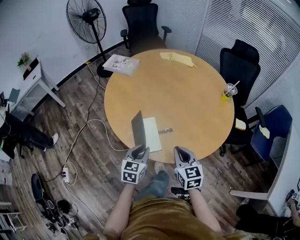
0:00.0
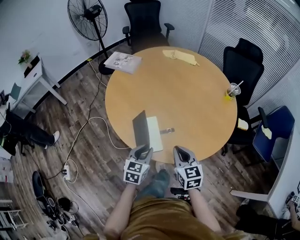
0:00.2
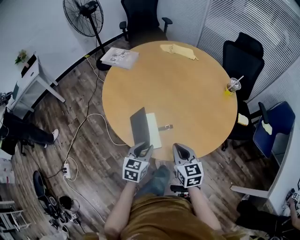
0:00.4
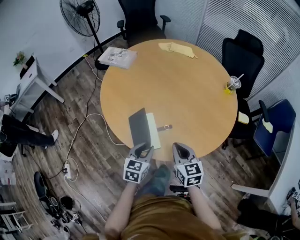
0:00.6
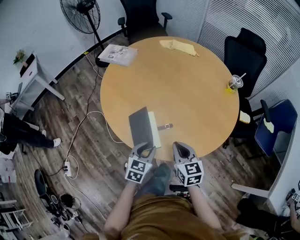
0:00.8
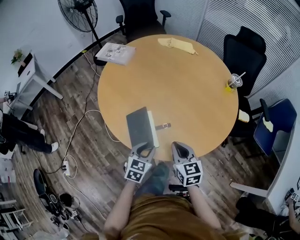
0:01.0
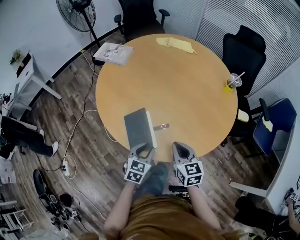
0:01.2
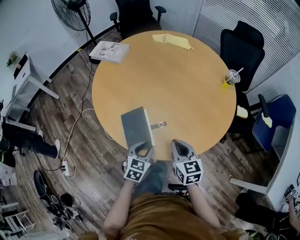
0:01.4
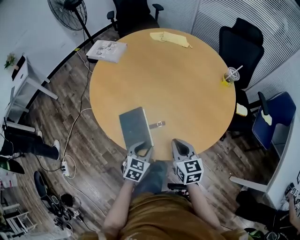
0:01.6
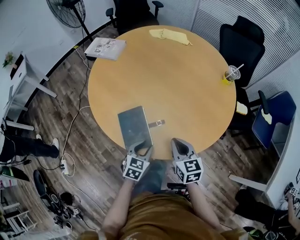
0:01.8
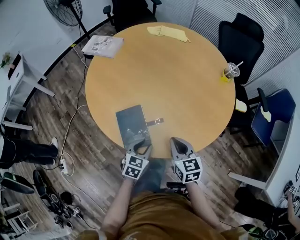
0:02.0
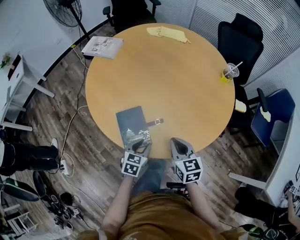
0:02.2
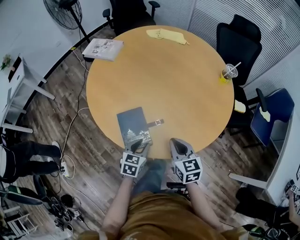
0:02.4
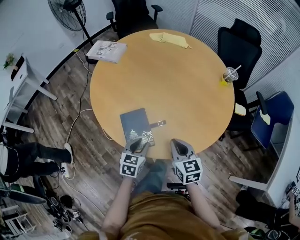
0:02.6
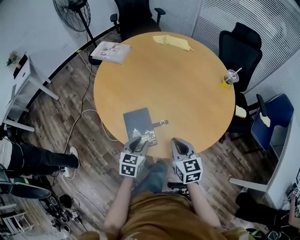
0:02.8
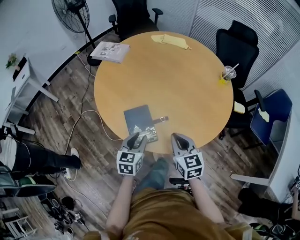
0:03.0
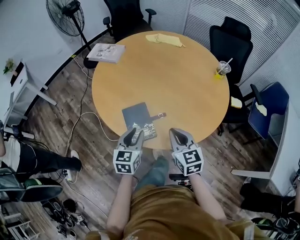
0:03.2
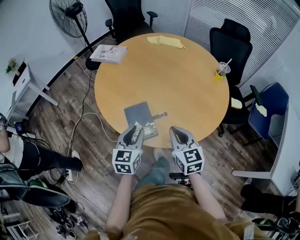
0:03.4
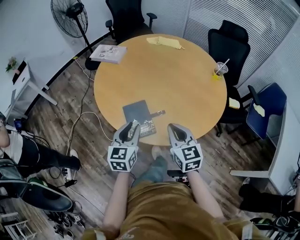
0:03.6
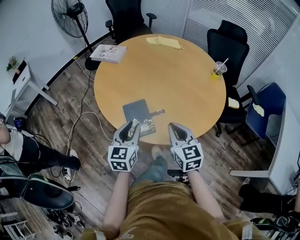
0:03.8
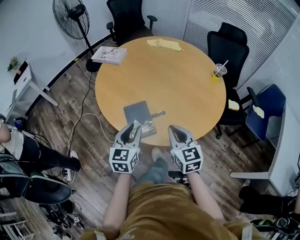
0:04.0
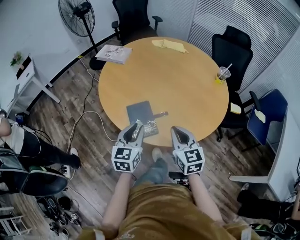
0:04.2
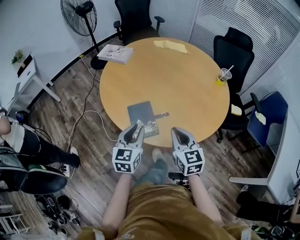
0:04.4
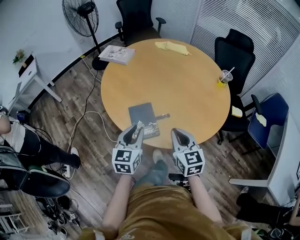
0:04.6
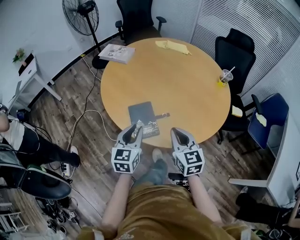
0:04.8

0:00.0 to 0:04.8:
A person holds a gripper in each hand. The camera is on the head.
0:00.0 to 0:01.6: The left gripper goes some 10 cm downward and to the right. The right gripper shifts by roughly 5 cm.
0:01.6 to 0:03.2: The right gripper is displaced upward by some 5 cm. Meanwhile the left gripper goes roughly 10 cm upward and to the left, and rotates approximately 20 degrees.
0:03.2 to 0:04.8: The left gripper moves upward, approximately 5 cm.

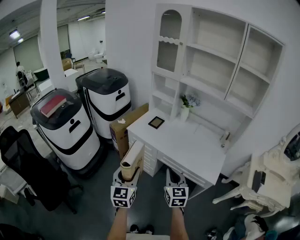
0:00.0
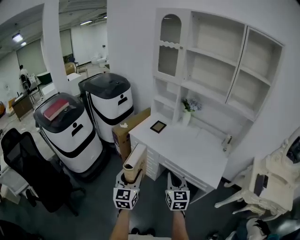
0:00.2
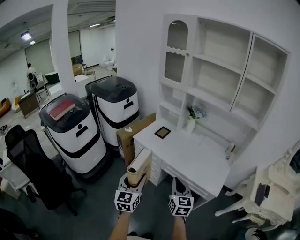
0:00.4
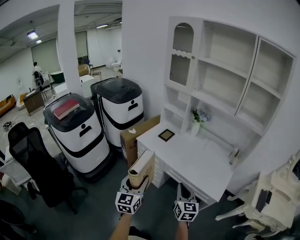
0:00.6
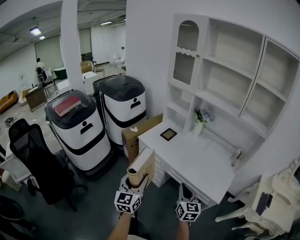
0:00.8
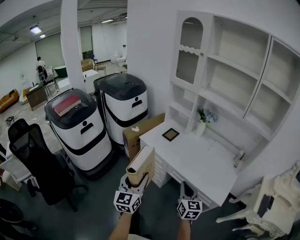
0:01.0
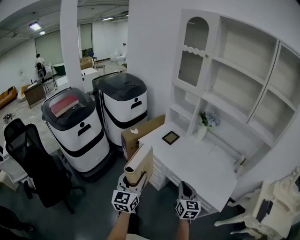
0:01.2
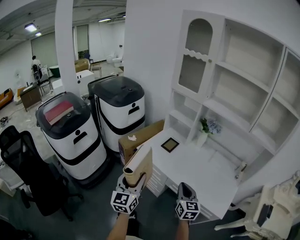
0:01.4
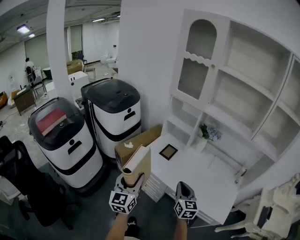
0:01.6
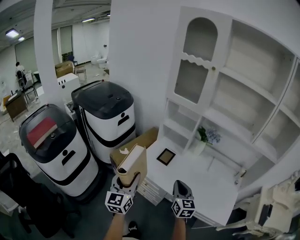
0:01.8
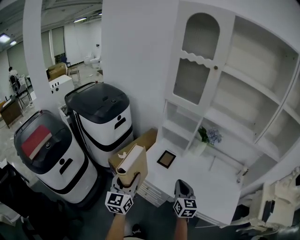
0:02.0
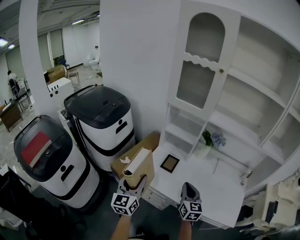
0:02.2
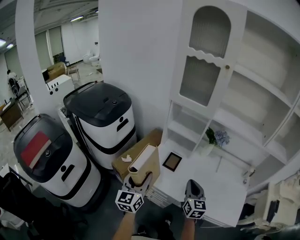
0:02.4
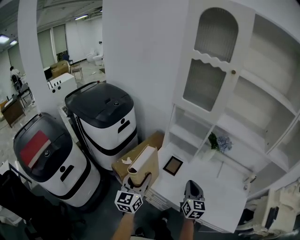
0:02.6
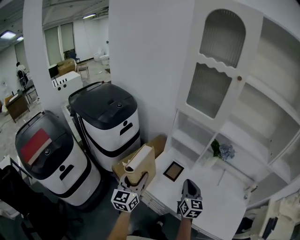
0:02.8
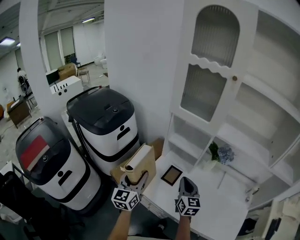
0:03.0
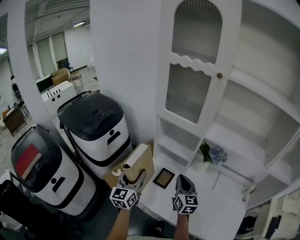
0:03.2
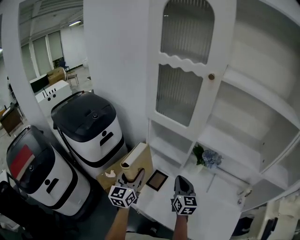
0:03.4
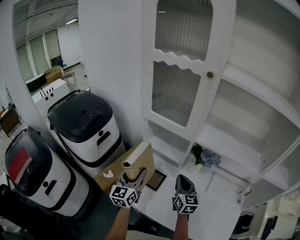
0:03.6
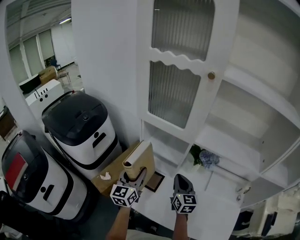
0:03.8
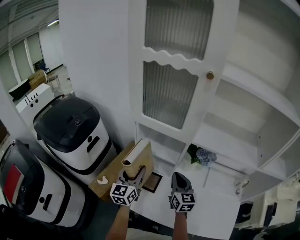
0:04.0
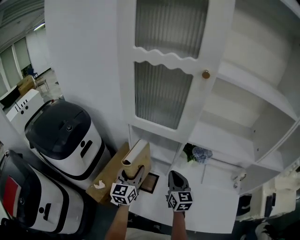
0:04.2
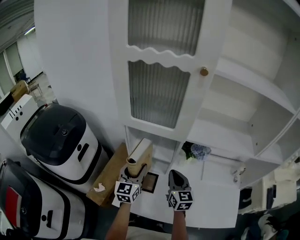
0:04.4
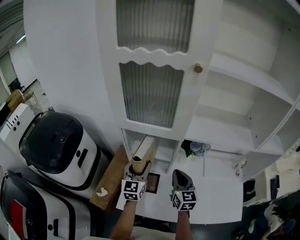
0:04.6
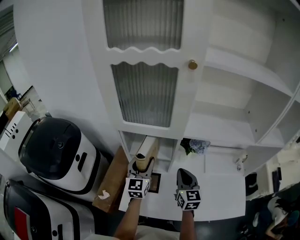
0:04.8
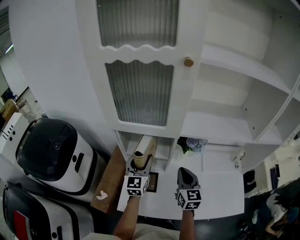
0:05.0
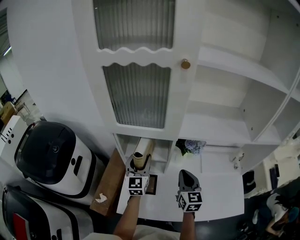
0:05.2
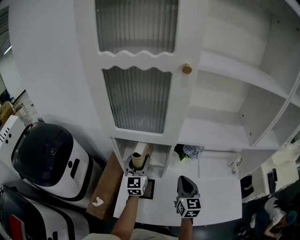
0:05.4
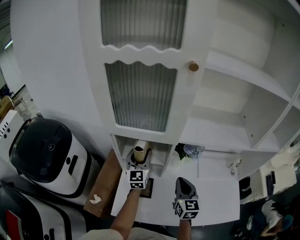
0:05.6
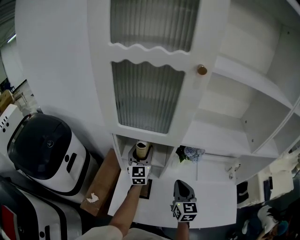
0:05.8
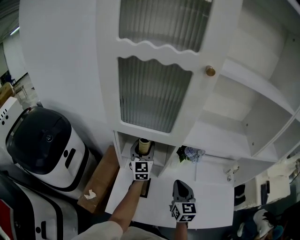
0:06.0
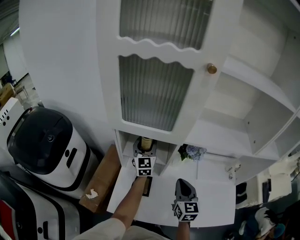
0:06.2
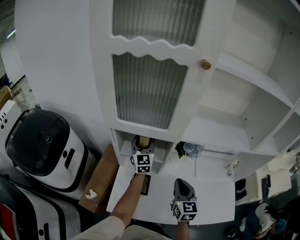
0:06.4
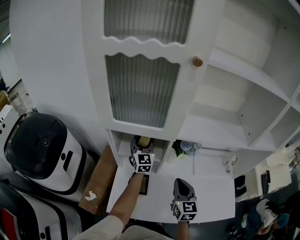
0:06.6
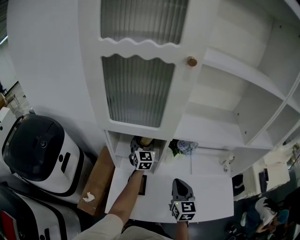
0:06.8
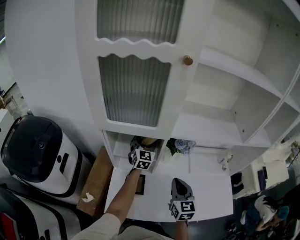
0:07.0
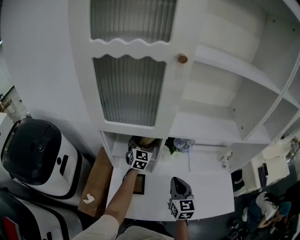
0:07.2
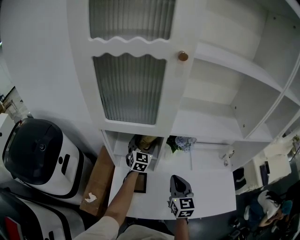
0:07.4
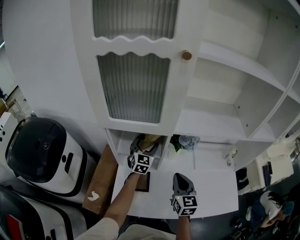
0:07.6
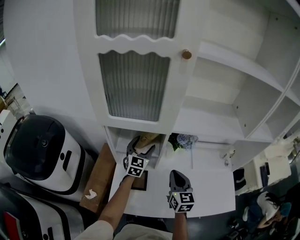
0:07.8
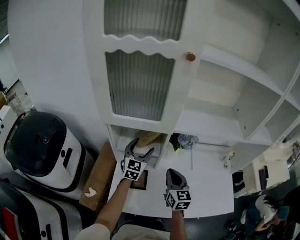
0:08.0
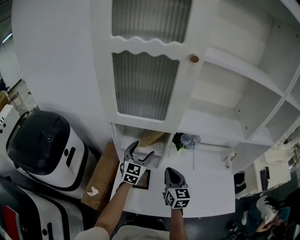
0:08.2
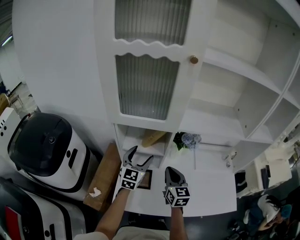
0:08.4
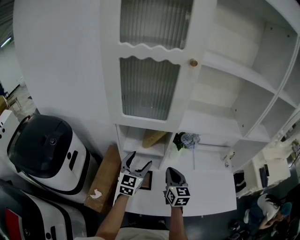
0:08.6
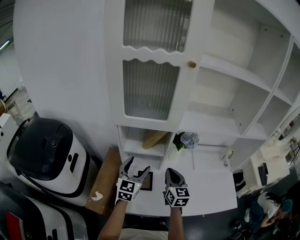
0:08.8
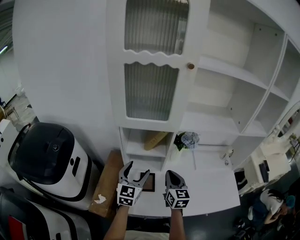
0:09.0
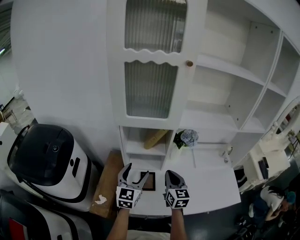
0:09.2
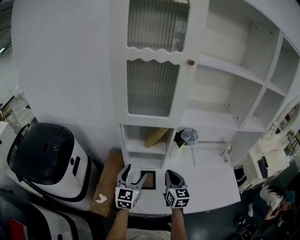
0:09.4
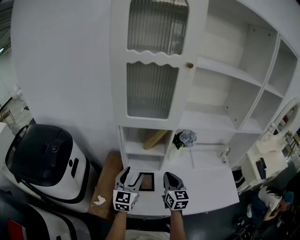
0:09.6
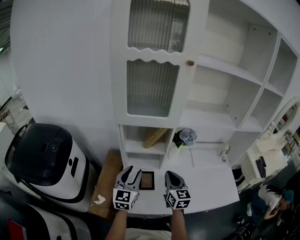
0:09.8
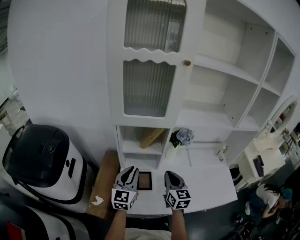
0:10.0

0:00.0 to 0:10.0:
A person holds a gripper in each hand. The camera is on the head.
0:00.0 to 0:01.4: The grippers both shift forward by some 15 cm.
0:01.4 to 0:02.8: Both grippers move forward, some 30 cm.
0:02.8 to 0:04.2: The right gripper is displaced forward and to the right by some 15 cm; the left gripper is displaced forward and to the right by approximately 25 cm.
0:04.2 to 0:05.8: The right gripper shifts roughly 5 cm to the right. Meanwhile the left gripper goes roughly 20 cm forward and to the right.
0:05.8 to 0:07.2: The left gripper goes roughly 10 cm to the right, and rotates some 20 degrees.
0:07.2 to 0:08.6: The left gripper travels backward by about 20 cm; the right gripper goes approximately 5 cm to the left.
0:08.6 to 0:10.0: The left gripper shifts approximately 10 cm backward, and closes, while the right gripper goes about 5 cm backward.

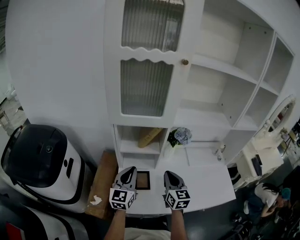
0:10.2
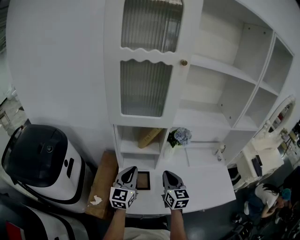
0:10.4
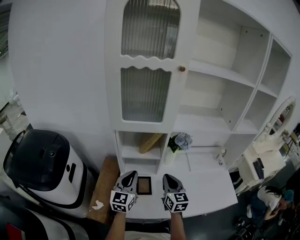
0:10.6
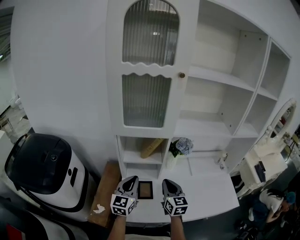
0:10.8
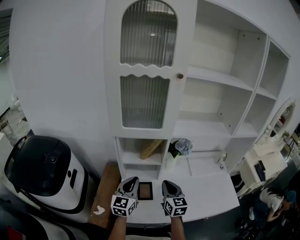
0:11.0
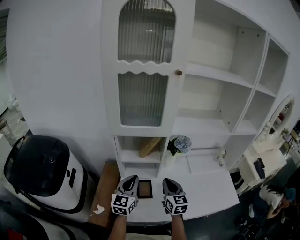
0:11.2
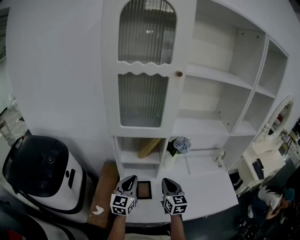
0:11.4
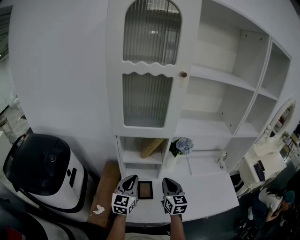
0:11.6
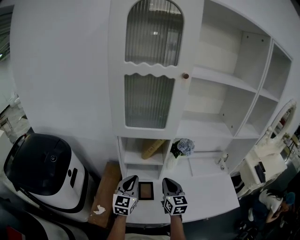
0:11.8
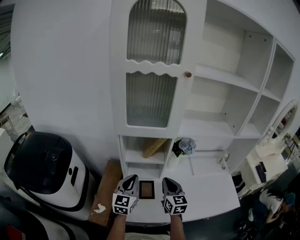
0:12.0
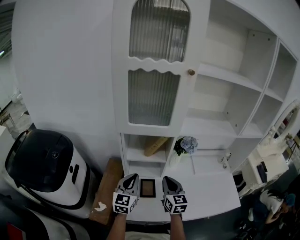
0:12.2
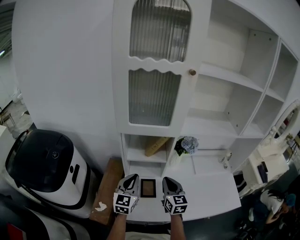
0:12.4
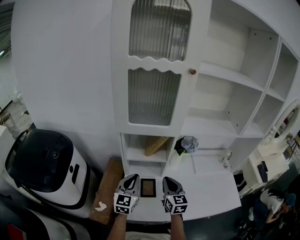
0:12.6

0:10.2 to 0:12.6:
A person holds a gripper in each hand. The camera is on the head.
0:10.2 to 0:12.6: The grippers stay close to where they were, moving slightly.

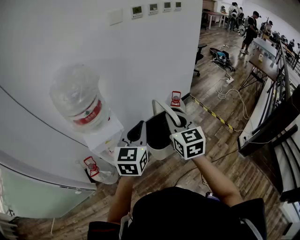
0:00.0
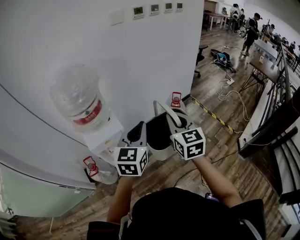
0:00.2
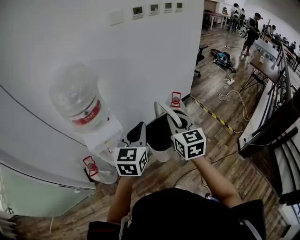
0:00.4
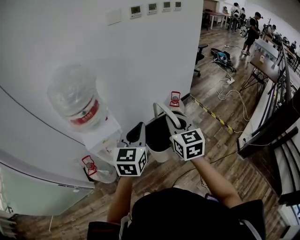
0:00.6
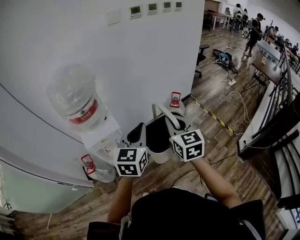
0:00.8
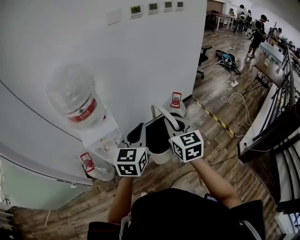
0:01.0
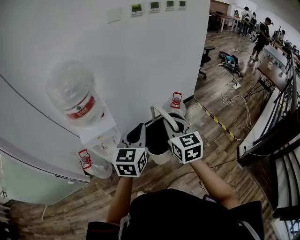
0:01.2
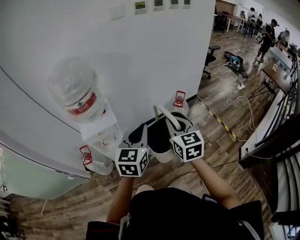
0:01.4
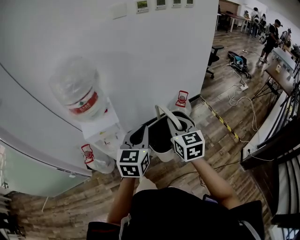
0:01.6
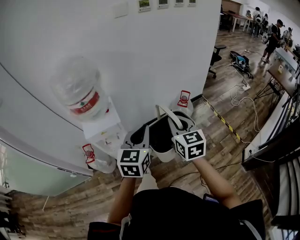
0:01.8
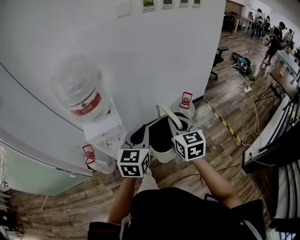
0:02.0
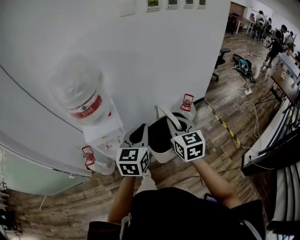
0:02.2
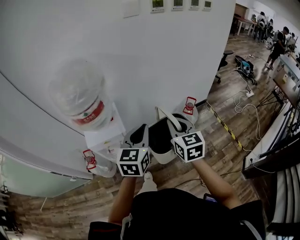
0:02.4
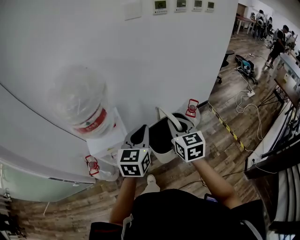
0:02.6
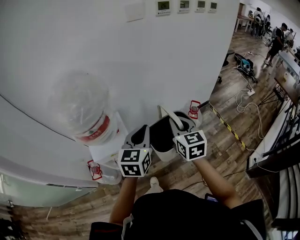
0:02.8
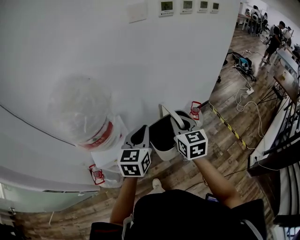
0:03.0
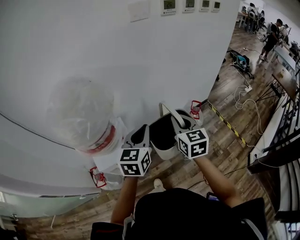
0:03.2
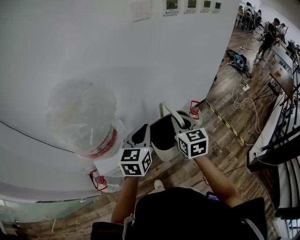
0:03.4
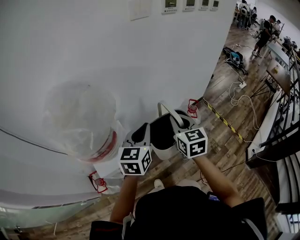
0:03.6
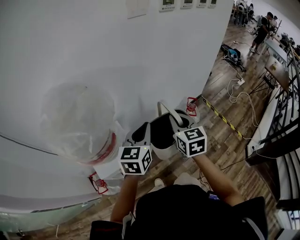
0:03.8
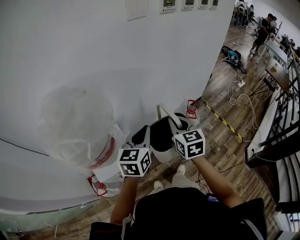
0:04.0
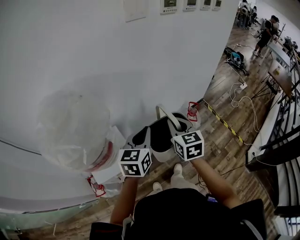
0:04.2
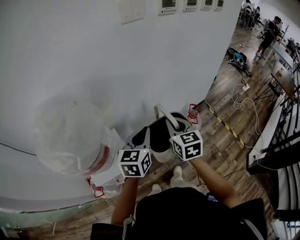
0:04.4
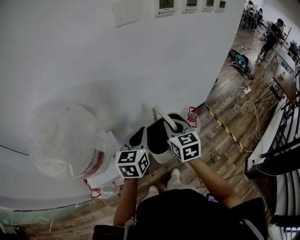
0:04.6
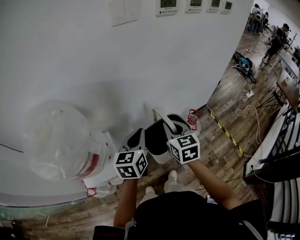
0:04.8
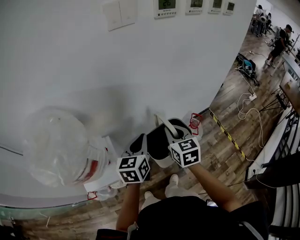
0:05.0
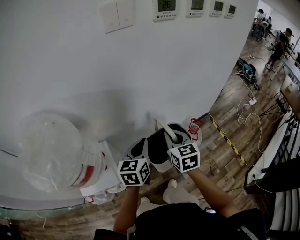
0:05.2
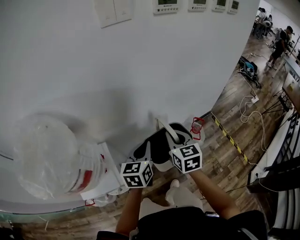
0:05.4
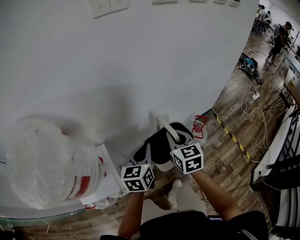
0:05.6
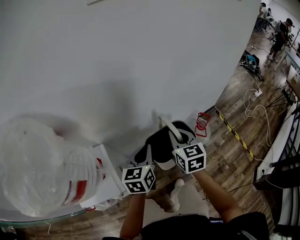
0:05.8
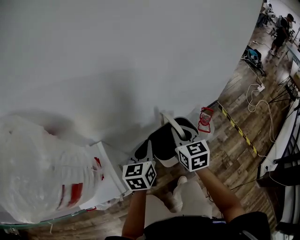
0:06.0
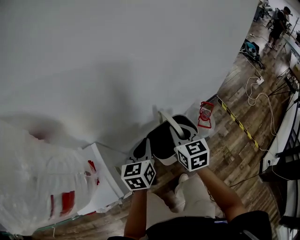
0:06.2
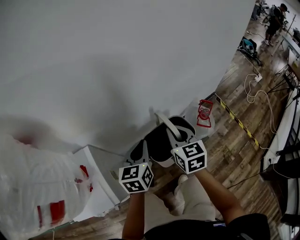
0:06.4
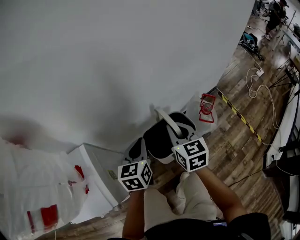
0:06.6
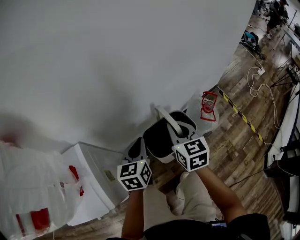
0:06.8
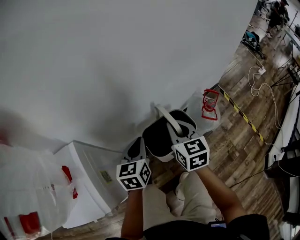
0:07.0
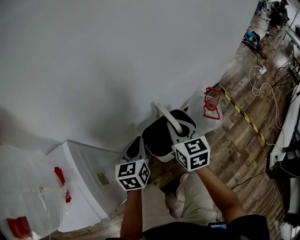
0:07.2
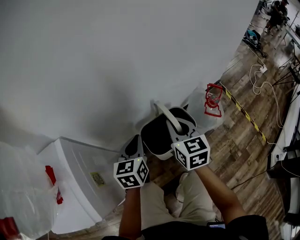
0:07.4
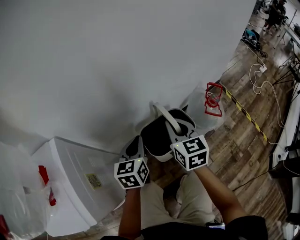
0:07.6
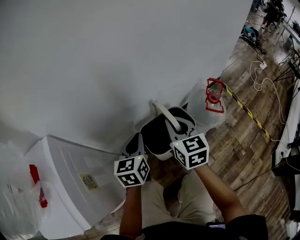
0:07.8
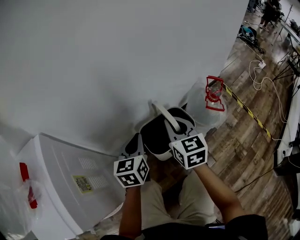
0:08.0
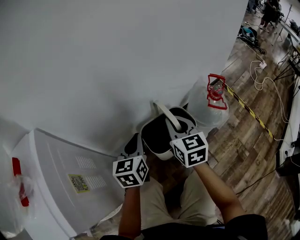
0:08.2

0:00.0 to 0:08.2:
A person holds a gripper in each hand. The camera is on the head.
0:00.0 to 0:01.6: The right gripper shifts approximately 10 cm to the right and downward, while the left gripper goes some 5 cm to the right.
0:01.6 to 0:03.2: Both grippers travel together forward and to the left, roughly 25 cm.
0:03.2 to 0:05.0: The two grippers go some 15 cm forward and downward.
0:05.0 to 0:06.6: The grippers both shift downward by roughly 25 cm.
0:06.6 to 0:08.2: The grippers both shift downward by roughly 20 cm.
